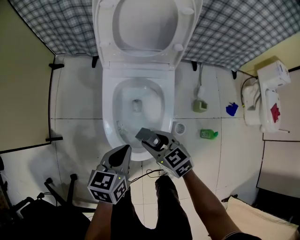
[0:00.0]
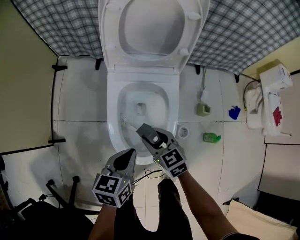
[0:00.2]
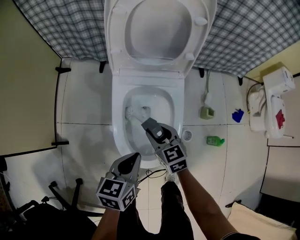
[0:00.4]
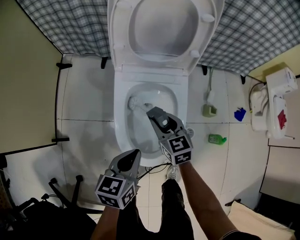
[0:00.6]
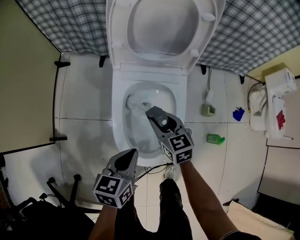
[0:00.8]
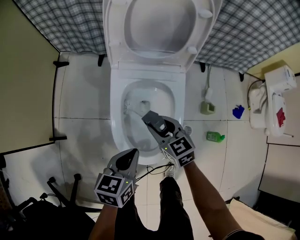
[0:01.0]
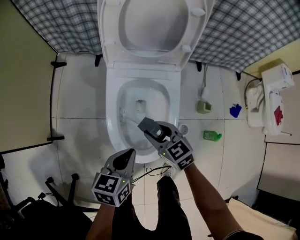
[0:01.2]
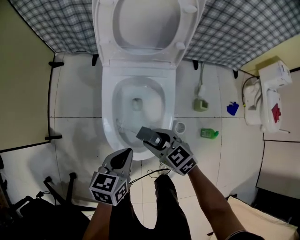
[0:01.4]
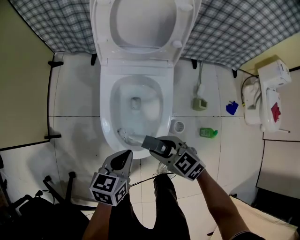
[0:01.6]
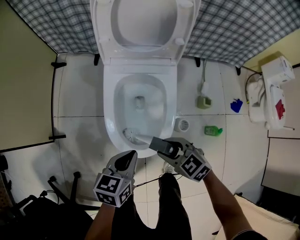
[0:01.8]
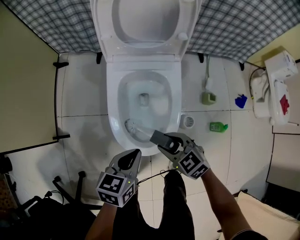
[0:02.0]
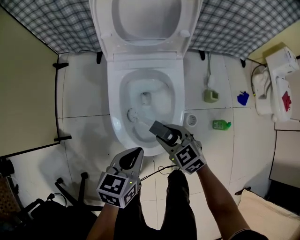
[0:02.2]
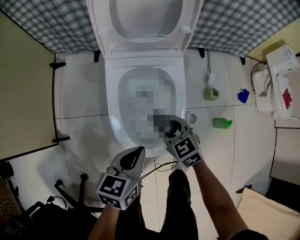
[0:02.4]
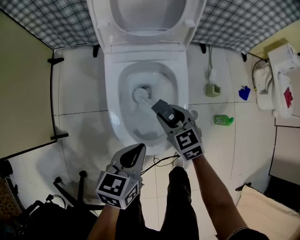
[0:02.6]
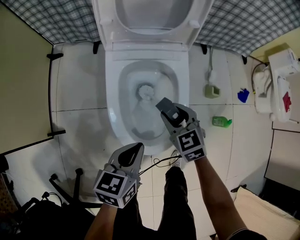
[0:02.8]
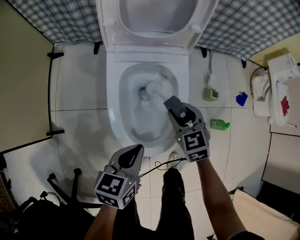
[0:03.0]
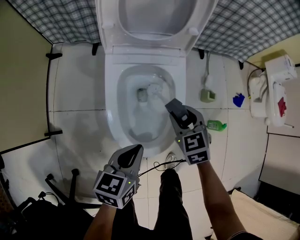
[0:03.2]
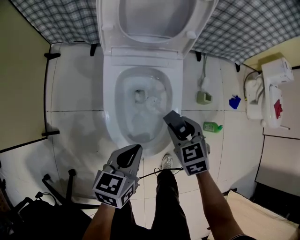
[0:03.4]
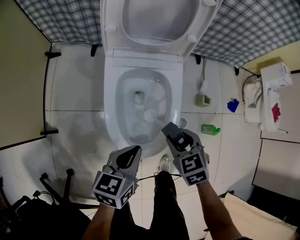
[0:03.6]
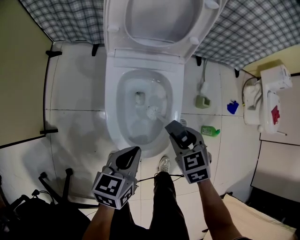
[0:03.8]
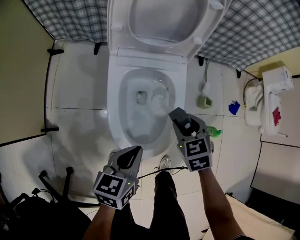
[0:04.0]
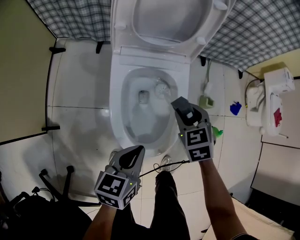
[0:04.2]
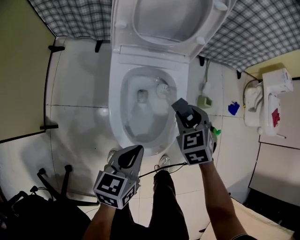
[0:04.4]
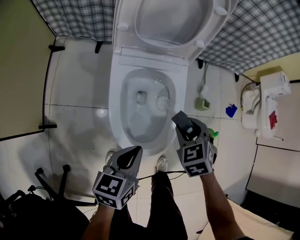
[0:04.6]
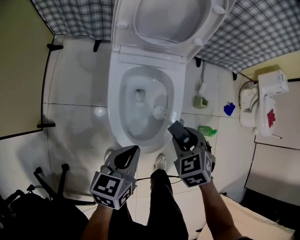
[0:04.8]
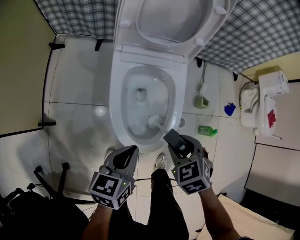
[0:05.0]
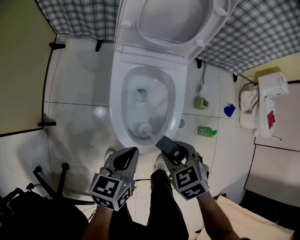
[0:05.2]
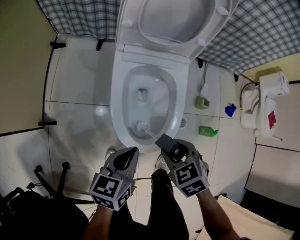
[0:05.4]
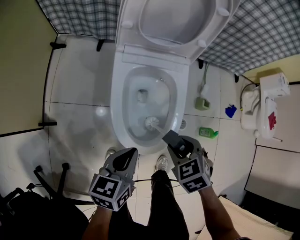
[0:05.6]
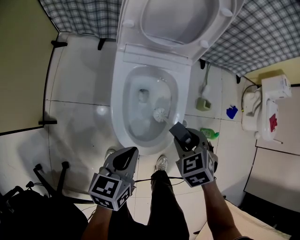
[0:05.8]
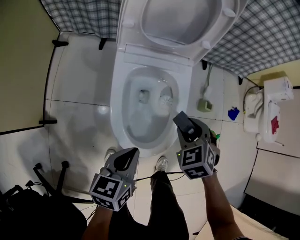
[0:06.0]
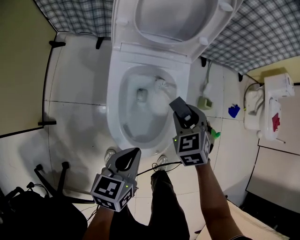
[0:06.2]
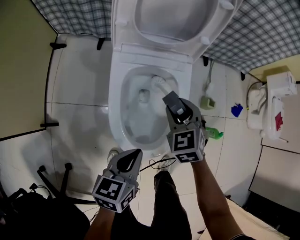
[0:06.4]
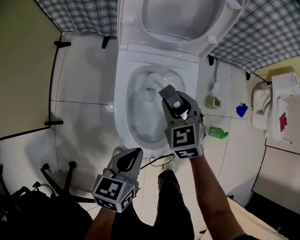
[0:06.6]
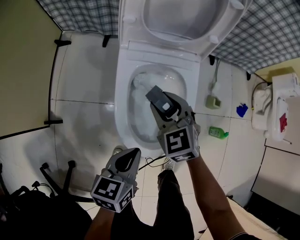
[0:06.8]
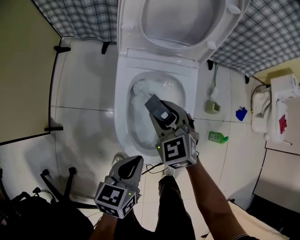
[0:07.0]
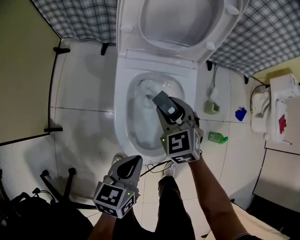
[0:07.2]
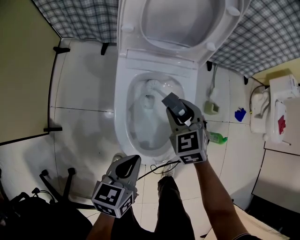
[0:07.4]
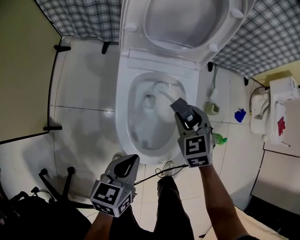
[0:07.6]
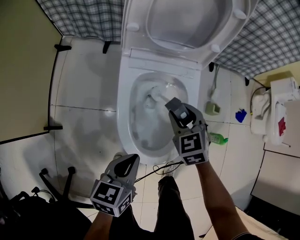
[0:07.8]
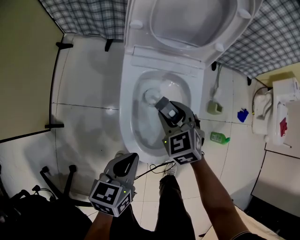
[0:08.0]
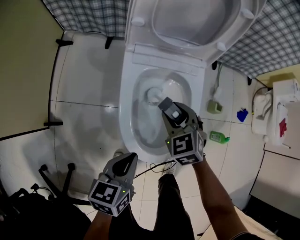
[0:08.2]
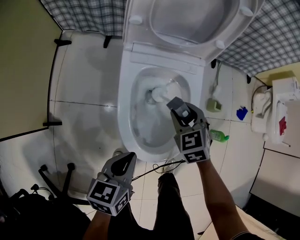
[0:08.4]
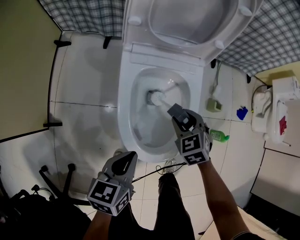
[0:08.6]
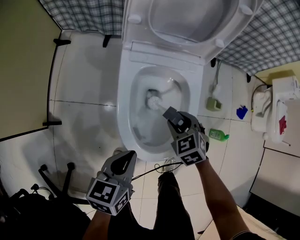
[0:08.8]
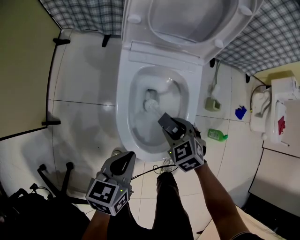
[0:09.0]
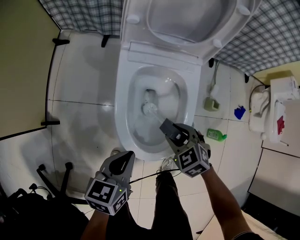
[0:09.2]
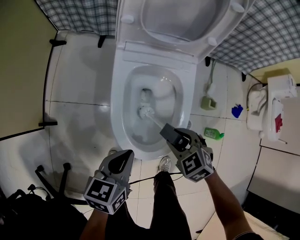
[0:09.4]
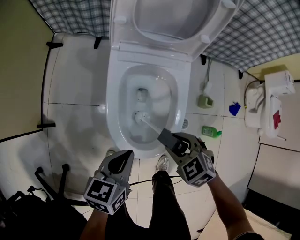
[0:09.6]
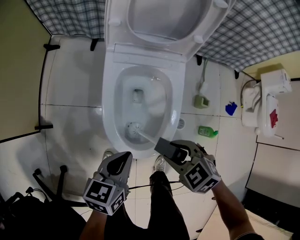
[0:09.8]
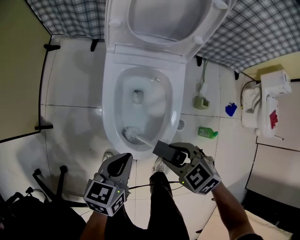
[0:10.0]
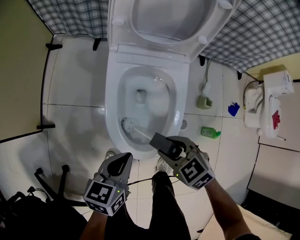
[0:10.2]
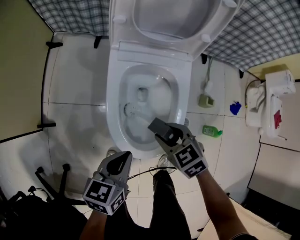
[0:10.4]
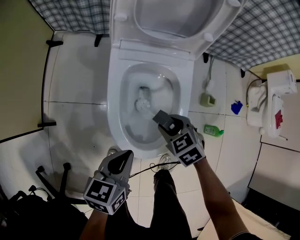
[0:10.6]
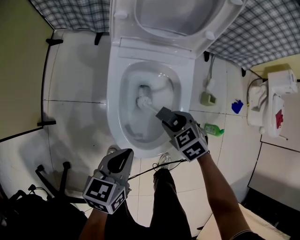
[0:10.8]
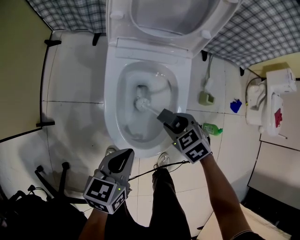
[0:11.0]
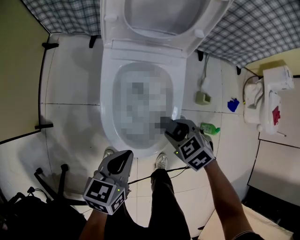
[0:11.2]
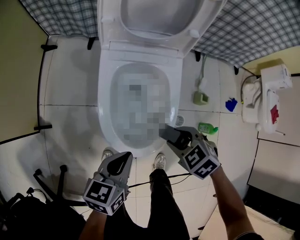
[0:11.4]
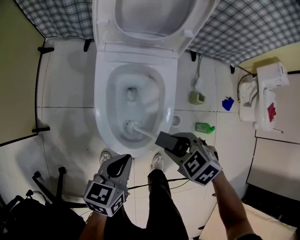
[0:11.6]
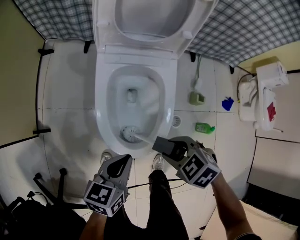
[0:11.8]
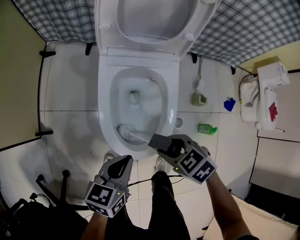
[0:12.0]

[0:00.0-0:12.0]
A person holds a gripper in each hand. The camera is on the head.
0:00.0 to 0:01.6: The right gripper moves some 10 cm forward and comes back.
0:01.6 to 0:03.0: The right gripper heads forward, covering approximately 10 cm, and turns by some 40 degrees.
0:03.0 to 0:04.4: The right gripper reaches roughly 5 cm backward, then returns.
0:04.4 to 0:06.0: The right gripper goes backward and returns, approximately 15 cm each way.
0:06.0 to 0:07.6: The right gripper goes roughly 5 cm forward.
0:07.6 to 0:09.0: The right gripper shifts roughly 10 cm downward and backward, and swivels roughly 20 degrees.
0:09.0 to 0:10.4: The right gripper travels backward and back again, approximately 10 cm each way.
0:10.4 to 0:12.0: The right gripper travels backward by approximately 5 cm.

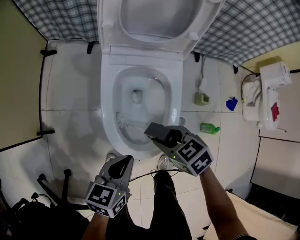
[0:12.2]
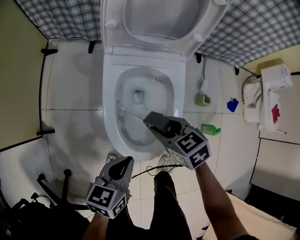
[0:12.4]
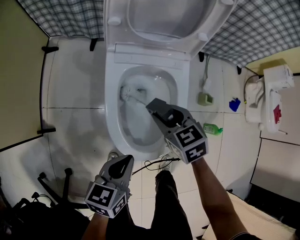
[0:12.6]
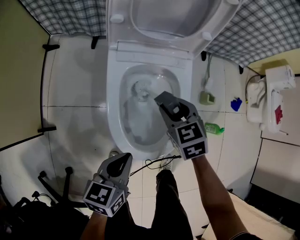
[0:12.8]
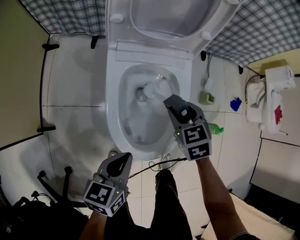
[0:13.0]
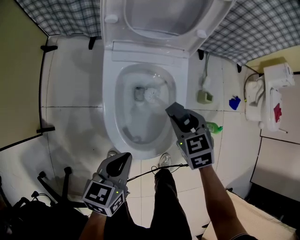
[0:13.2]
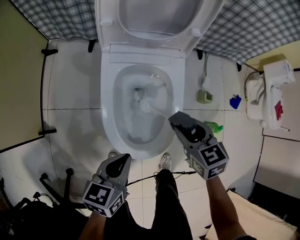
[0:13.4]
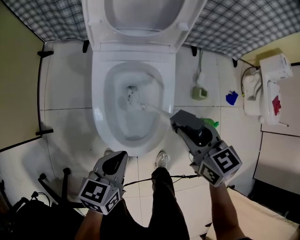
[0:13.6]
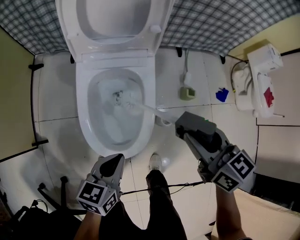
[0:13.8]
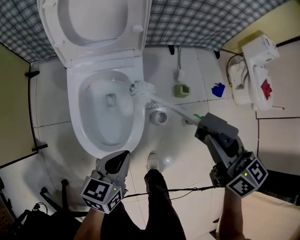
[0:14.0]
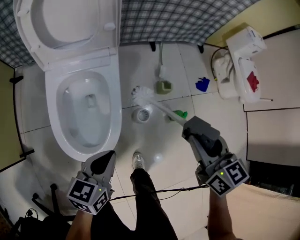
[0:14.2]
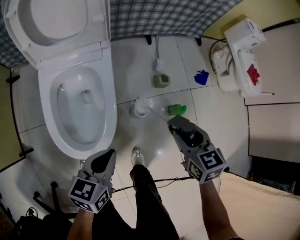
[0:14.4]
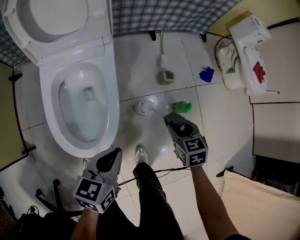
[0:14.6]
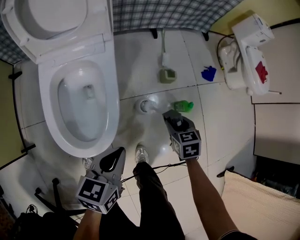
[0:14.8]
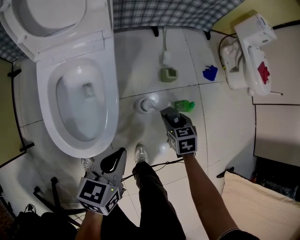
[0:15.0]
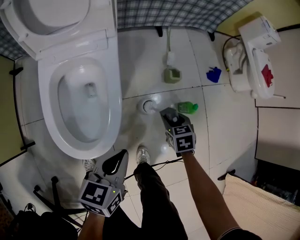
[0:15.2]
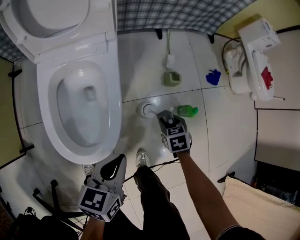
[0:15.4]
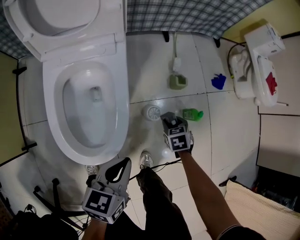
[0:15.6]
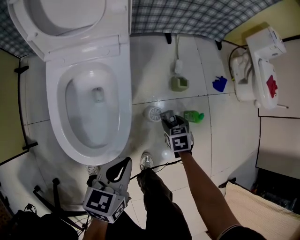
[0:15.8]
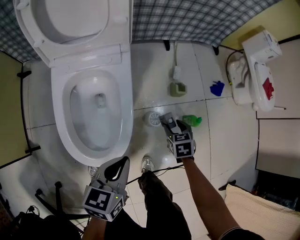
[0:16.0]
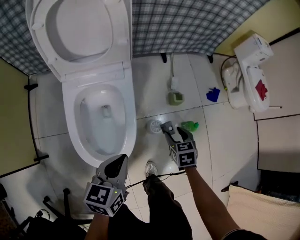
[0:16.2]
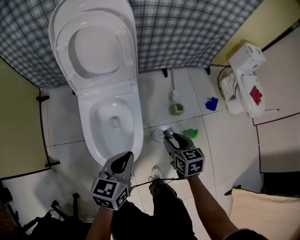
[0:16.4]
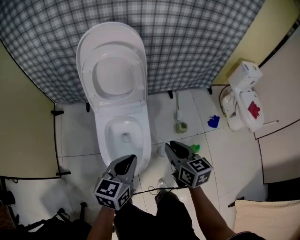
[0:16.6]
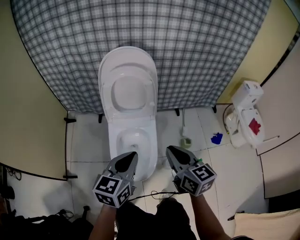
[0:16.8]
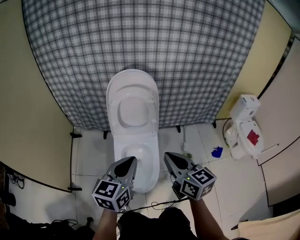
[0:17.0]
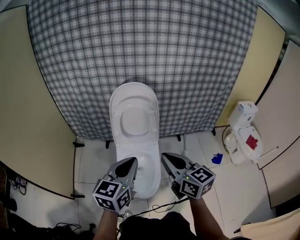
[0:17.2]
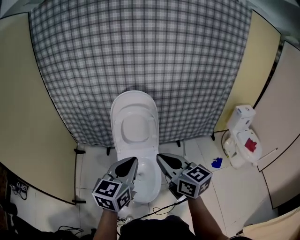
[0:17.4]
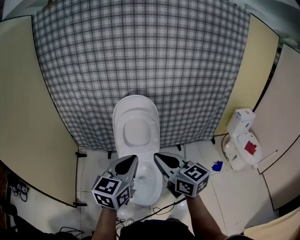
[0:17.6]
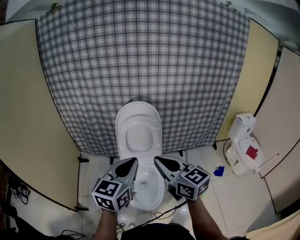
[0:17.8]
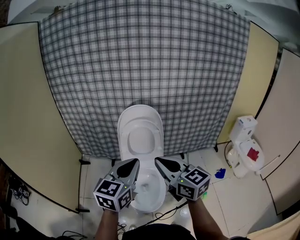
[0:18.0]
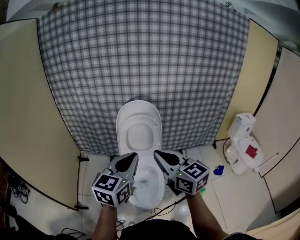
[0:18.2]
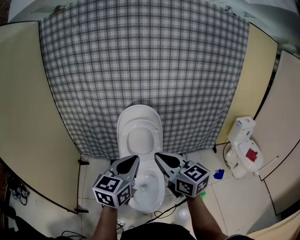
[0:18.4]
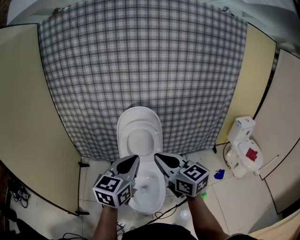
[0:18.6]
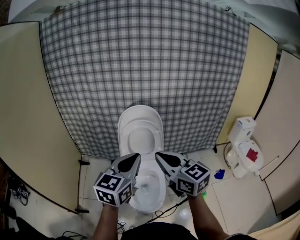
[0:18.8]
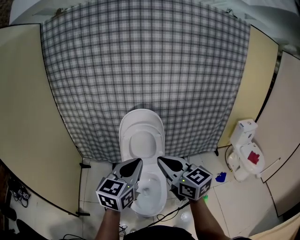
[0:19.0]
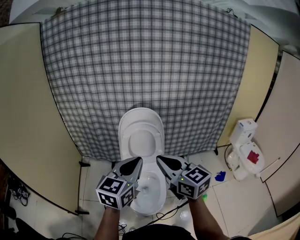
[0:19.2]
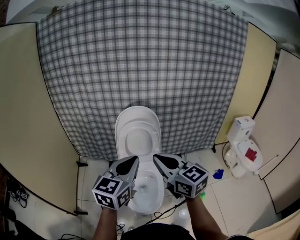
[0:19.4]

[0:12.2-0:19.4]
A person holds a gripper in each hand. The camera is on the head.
0:12.2 to 0:13.6: The right gripper shifts roughly 15 cm to the right and upward, and turns by about 30 degrees.
0:13.6 to 0:15.0: The left gripper shifts roughly 20 cm to the right. The right gripper shifts about 30 cm to the right and downward, and turns by some 30 degrees.
0:15.0 to 0:16.6: The left gripper goes roughly 25 cm upward and to the left. The right gripper shifts approximately 40 cm upward and to the left, and tips its fingers upward by about 30 degrees.
0:16.6 to 0:18.0: The left gripper heads upward, covering about 30 cm, and swivels approximately 20 degrees, while the right gripper goes about 35 cm upward and to the left, rotates some 40 degrees, and closes its fingers.
0:18.0 to 0:19.4: There are only small adjustments of the grippers.

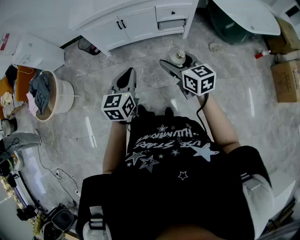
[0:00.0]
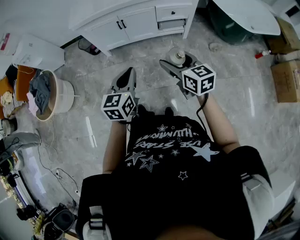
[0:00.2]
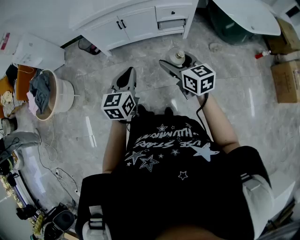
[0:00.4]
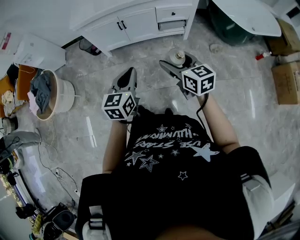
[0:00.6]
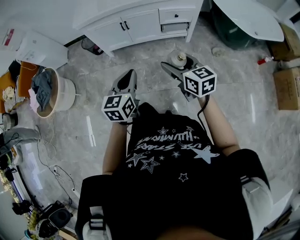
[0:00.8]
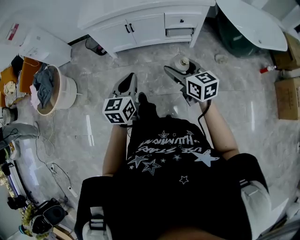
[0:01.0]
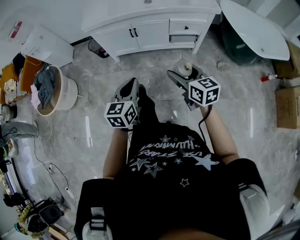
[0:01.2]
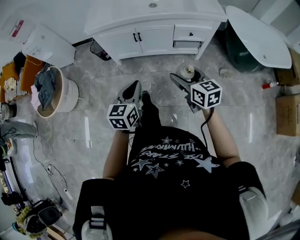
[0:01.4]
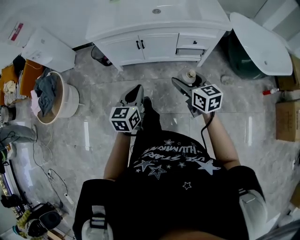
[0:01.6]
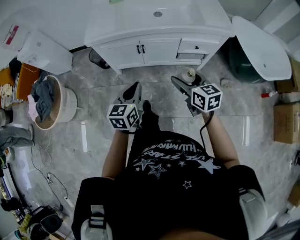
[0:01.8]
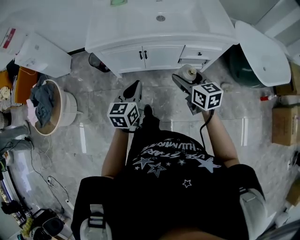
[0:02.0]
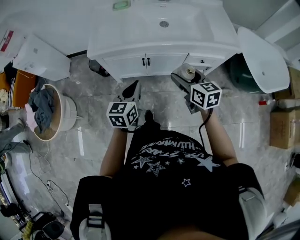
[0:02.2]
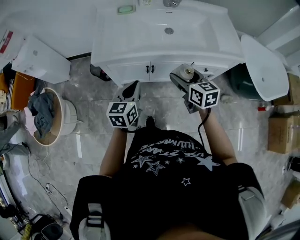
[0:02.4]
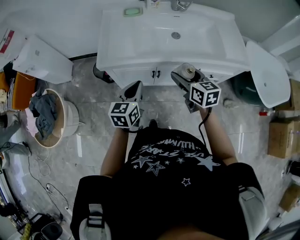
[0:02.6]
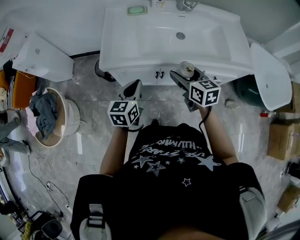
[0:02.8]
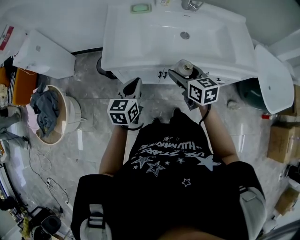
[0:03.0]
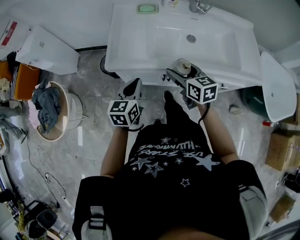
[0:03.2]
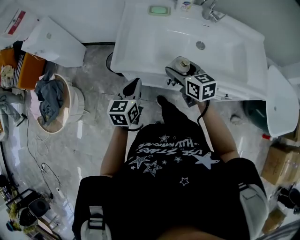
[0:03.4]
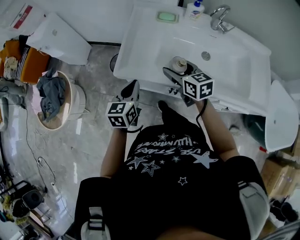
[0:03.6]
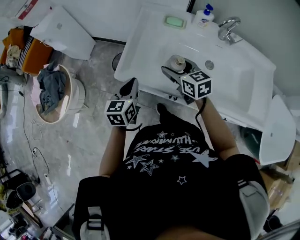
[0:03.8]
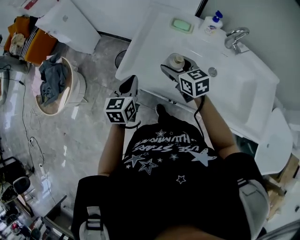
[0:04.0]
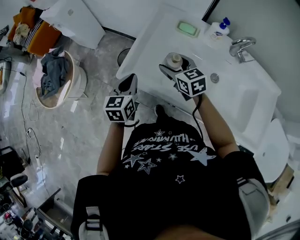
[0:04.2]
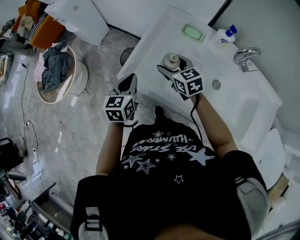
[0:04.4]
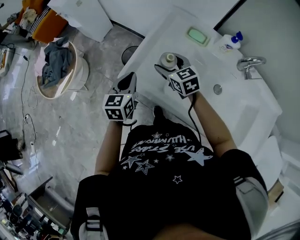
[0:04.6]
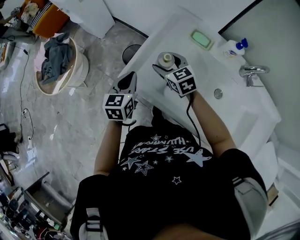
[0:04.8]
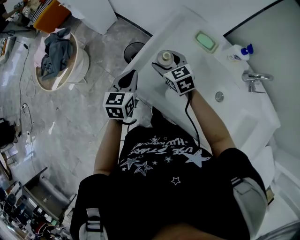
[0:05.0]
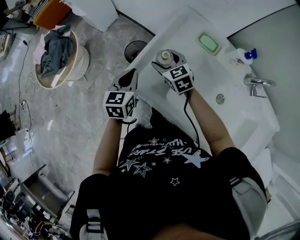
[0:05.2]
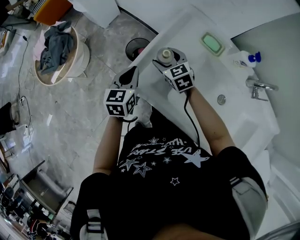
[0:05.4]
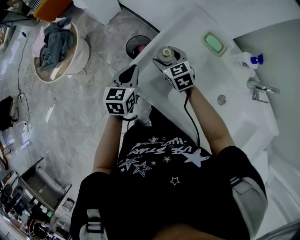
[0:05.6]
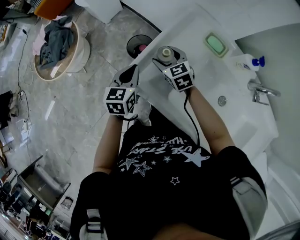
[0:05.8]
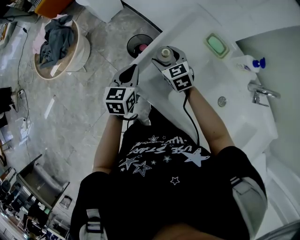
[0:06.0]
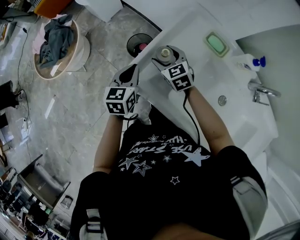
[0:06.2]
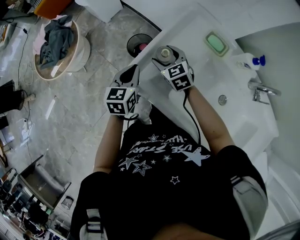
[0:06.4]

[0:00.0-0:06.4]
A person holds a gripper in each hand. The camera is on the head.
0:00.0 to 0:01.6: The two grippers go approximately 15 cm forward.
0:01.6 to 0:03.2: Both grippers are carried forward and to the left, about 40 cm.
0:03.2 to 0:04.8: The right gripper moves about 30 cm, and rotates some 50 degrees; the left gripper ends up roughly 20 cm from where it was, and turns by about 30 degrees.
0:04.8 to 0:06.4: The left gripper changes place by some 5 cm. The right gripper shifts some 5 cm downward.
